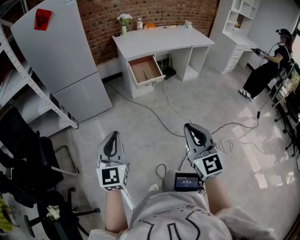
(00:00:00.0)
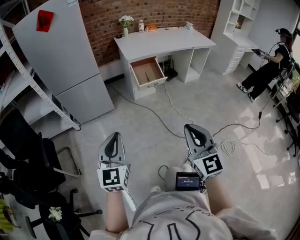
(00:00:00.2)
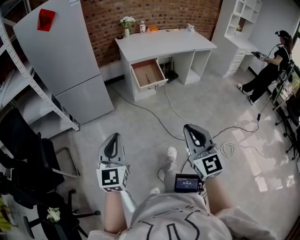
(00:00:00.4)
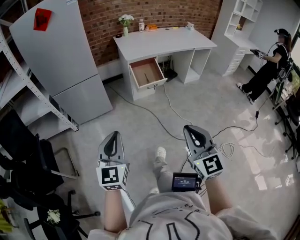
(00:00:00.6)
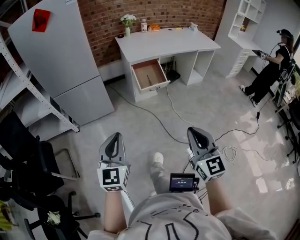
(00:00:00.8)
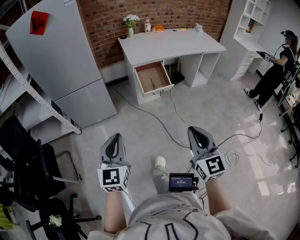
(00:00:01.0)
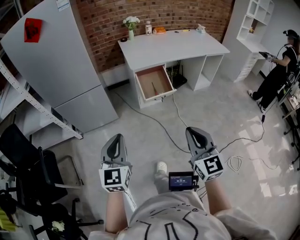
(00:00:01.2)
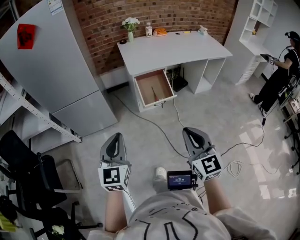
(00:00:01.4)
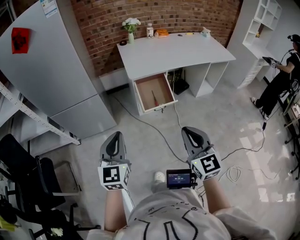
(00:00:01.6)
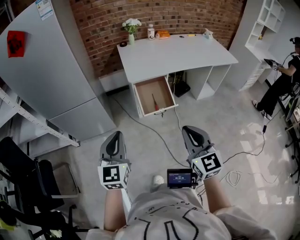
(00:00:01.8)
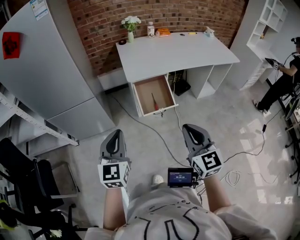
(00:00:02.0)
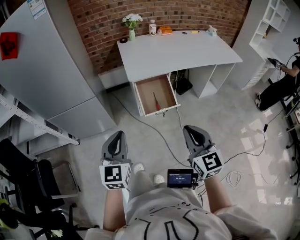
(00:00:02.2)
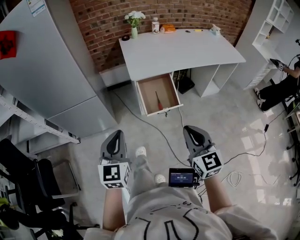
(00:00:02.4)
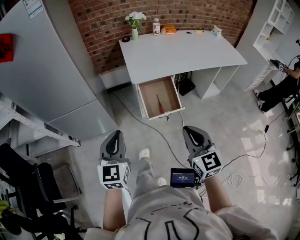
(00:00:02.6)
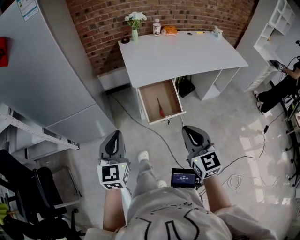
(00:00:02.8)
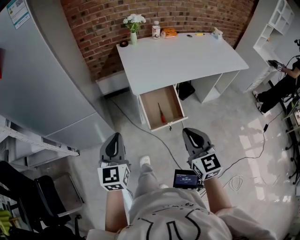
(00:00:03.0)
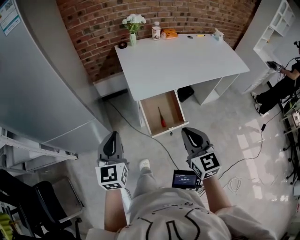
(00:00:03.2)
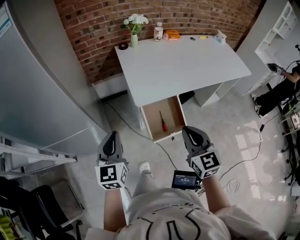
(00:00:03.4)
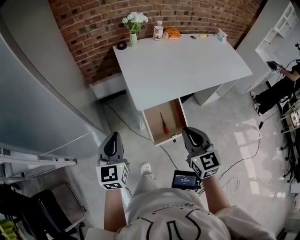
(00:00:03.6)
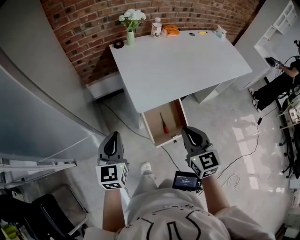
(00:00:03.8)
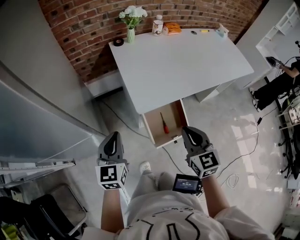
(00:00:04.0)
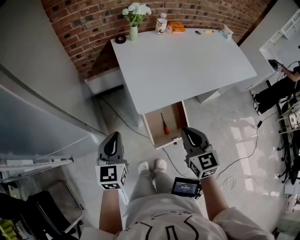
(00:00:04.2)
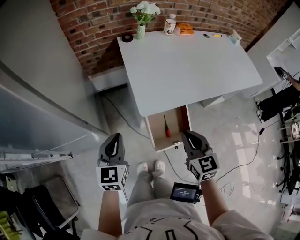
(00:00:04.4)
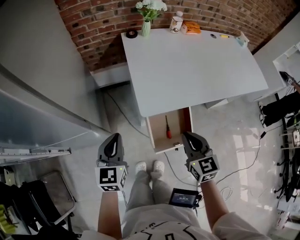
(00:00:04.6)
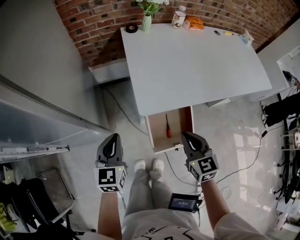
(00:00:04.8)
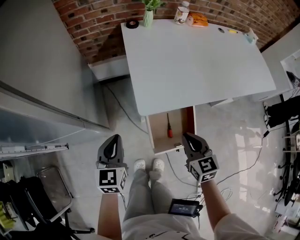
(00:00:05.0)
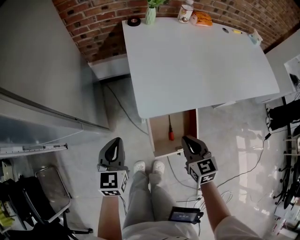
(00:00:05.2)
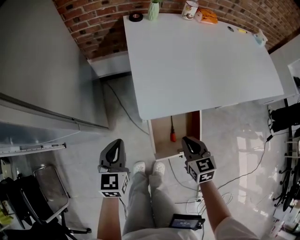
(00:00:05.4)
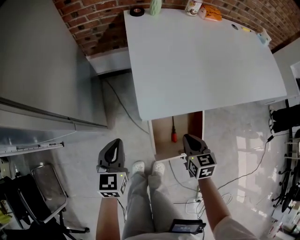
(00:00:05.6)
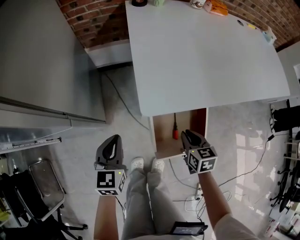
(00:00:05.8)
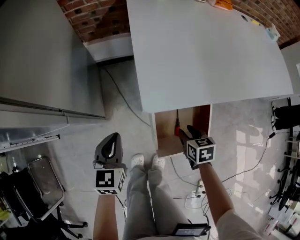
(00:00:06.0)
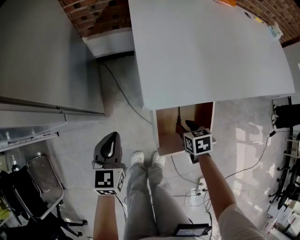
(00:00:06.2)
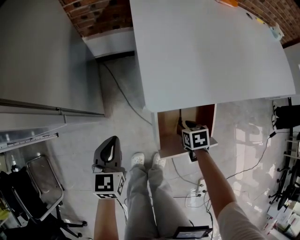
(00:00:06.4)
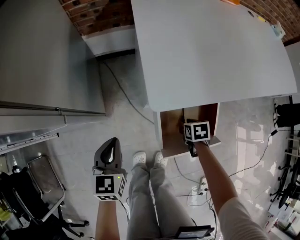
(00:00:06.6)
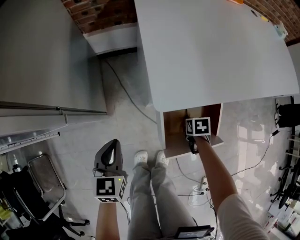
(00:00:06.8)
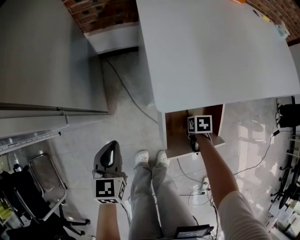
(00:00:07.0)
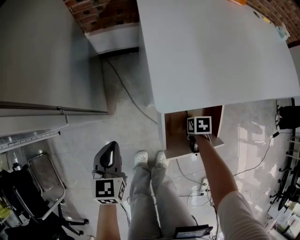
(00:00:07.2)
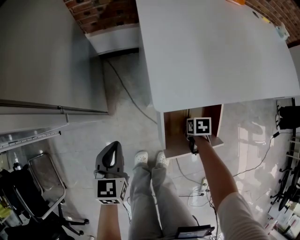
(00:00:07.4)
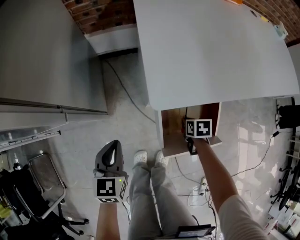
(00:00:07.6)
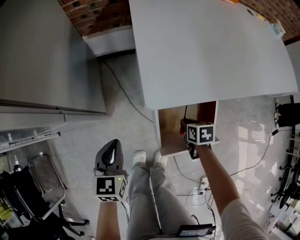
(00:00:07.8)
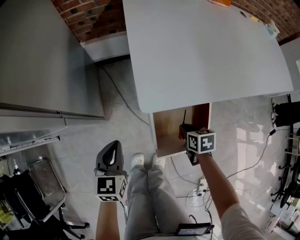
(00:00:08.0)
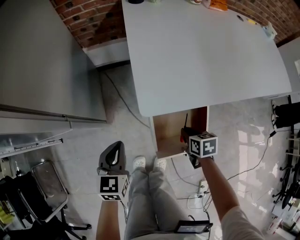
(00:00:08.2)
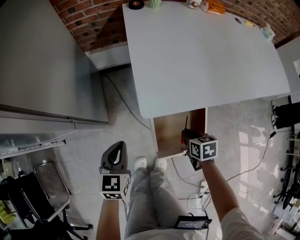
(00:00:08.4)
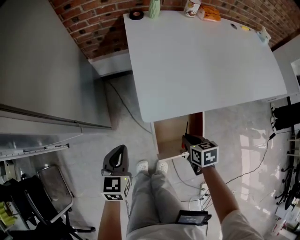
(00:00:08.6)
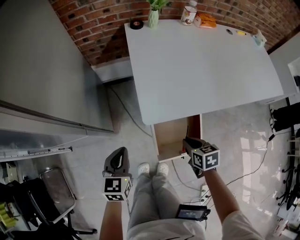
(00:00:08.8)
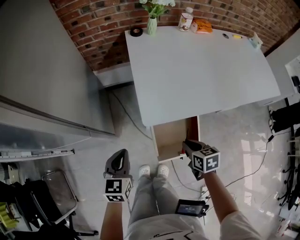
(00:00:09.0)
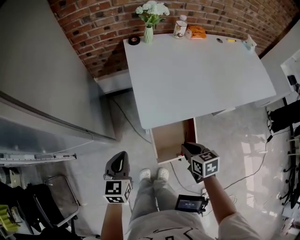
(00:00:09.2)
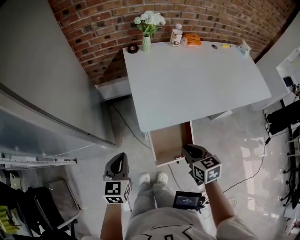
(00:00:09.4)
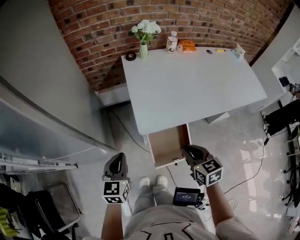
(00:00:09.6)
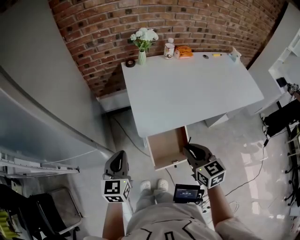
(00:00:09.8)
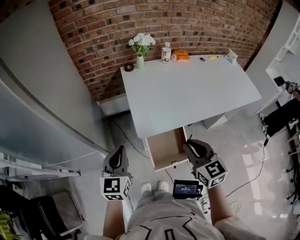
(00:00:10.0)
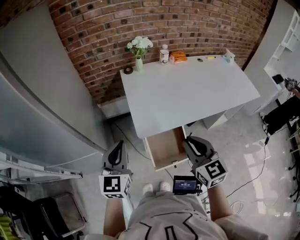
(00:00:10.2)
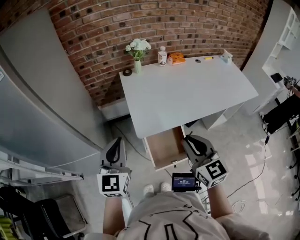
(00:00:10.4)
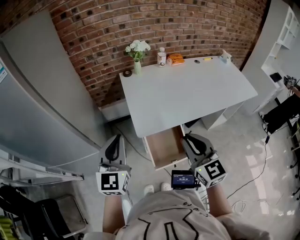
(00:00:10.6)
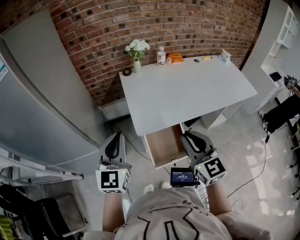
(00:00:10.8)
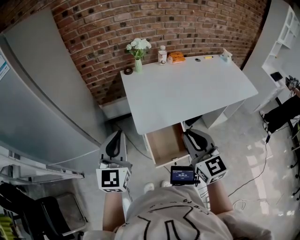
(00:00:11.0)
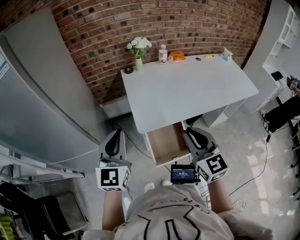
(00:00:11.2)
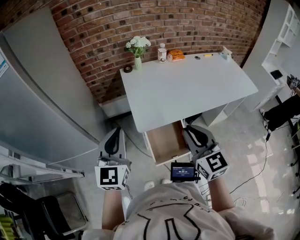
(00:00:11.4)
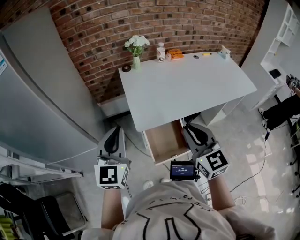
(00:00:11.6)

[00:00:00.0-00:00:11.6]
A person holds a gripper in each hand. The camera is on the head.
00:00:00.0 to 00:00:01.4: The two grippers go some 25 cm forward.
00:00:01.4 to 00:00:02.8: The grippers both shift forward by about 25 cm.
00:00:02.8 to 00:00:04.4: Both grippers travel together forward, some 25 cm.
00:00:04.4 to 00:00:05.8: Both grippers travel together downward, approximately 25 cm. The right gripper rotates roughly 30 degrees.
00:00:05.8 to 00:00:07.2: The right gripper is displaced downward by approximately 20 cm, and angles its fingers downward, by about 30 degrees. Meanwhile the left gripper moves downward, approximately 5 cm.
00:00:07.2 to 00:00:08.8: The left gripper shifts some 15 cm upward, while the right gripper travels upward by approximately 25 cm, and rotates some 20 degrees.
00:00:08.8 to 00:00:10.2: Both grippers travel together upward, approximately 30 cm. The left gripper changes its angle by roughly 30 degrees; the right gripper tilts its fingers about 40 degrees upward.
00:00:10.2 to 00:00:11.6: The left gripper goes about 5 cm upward.

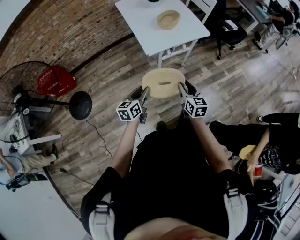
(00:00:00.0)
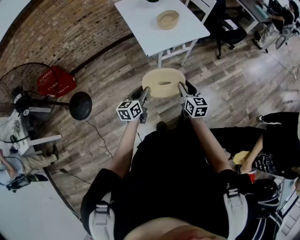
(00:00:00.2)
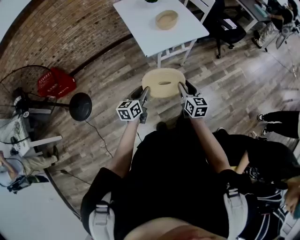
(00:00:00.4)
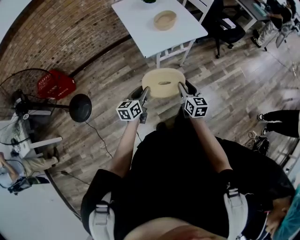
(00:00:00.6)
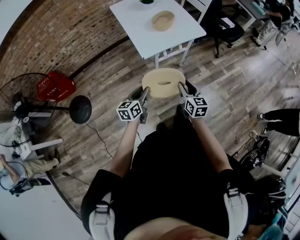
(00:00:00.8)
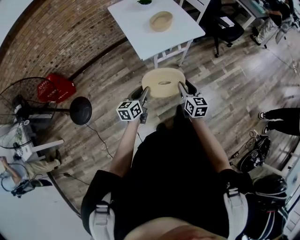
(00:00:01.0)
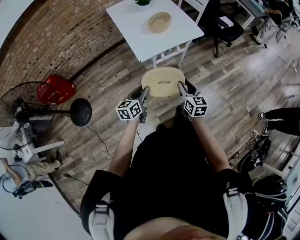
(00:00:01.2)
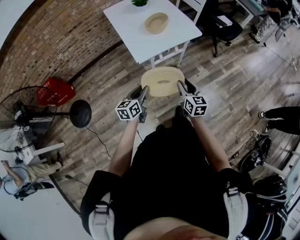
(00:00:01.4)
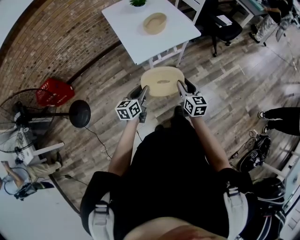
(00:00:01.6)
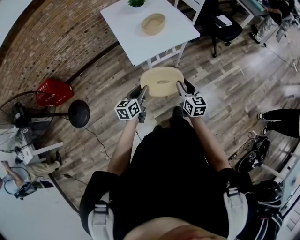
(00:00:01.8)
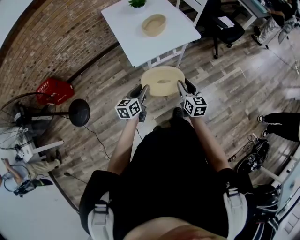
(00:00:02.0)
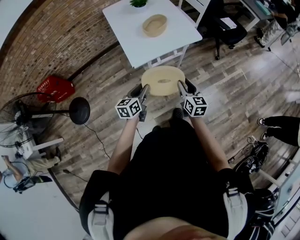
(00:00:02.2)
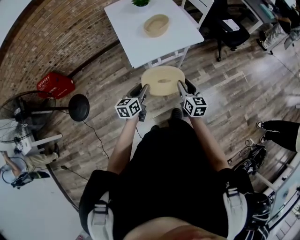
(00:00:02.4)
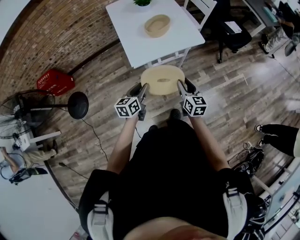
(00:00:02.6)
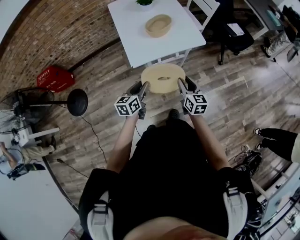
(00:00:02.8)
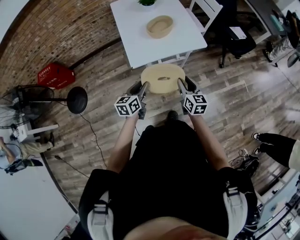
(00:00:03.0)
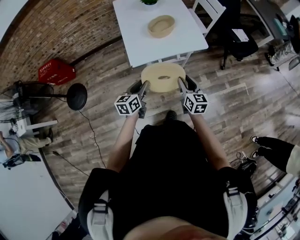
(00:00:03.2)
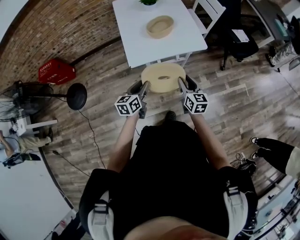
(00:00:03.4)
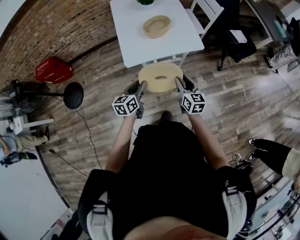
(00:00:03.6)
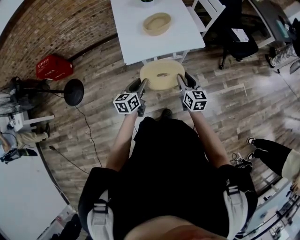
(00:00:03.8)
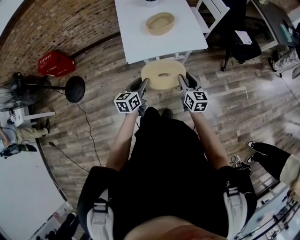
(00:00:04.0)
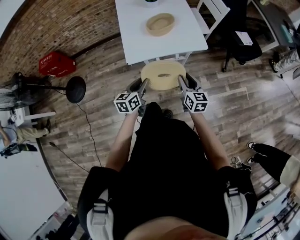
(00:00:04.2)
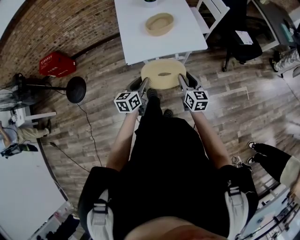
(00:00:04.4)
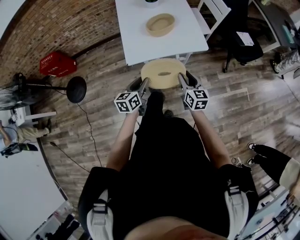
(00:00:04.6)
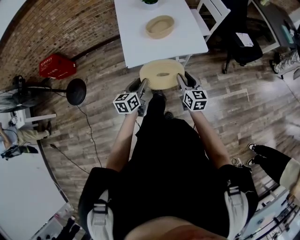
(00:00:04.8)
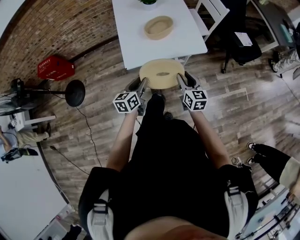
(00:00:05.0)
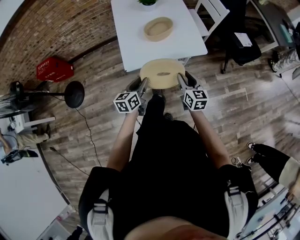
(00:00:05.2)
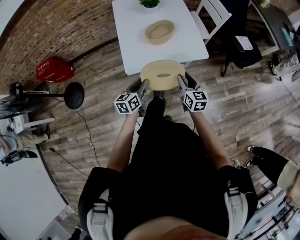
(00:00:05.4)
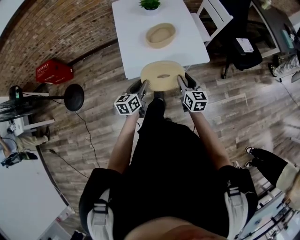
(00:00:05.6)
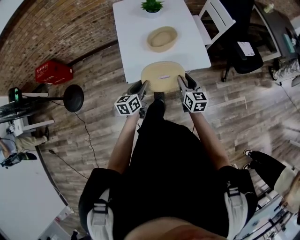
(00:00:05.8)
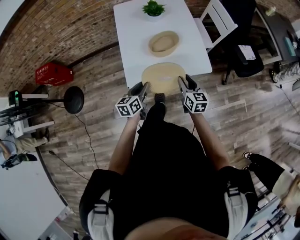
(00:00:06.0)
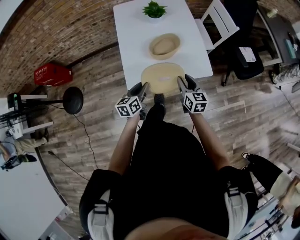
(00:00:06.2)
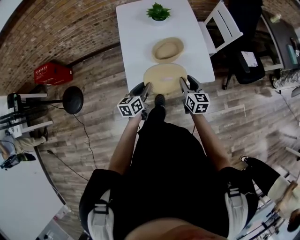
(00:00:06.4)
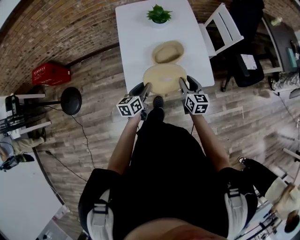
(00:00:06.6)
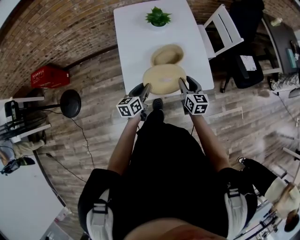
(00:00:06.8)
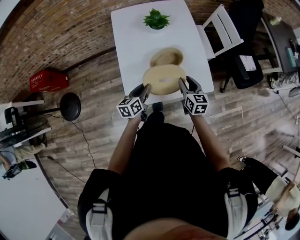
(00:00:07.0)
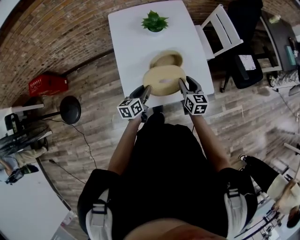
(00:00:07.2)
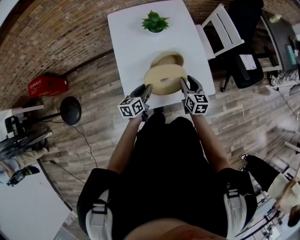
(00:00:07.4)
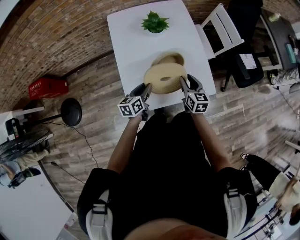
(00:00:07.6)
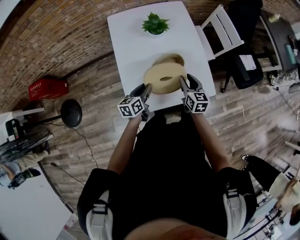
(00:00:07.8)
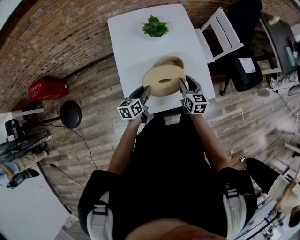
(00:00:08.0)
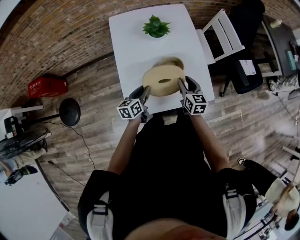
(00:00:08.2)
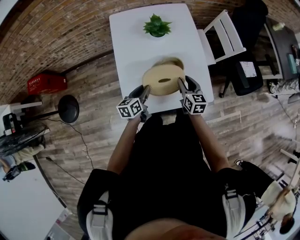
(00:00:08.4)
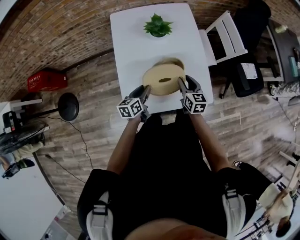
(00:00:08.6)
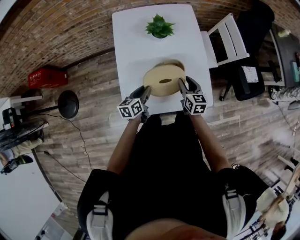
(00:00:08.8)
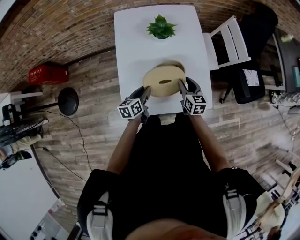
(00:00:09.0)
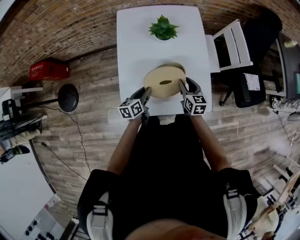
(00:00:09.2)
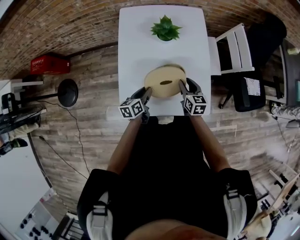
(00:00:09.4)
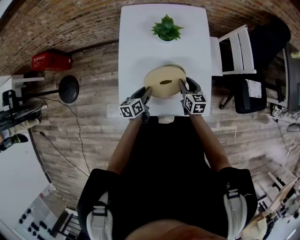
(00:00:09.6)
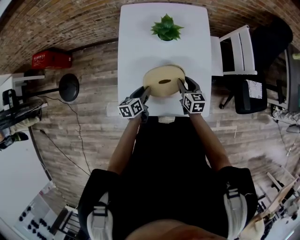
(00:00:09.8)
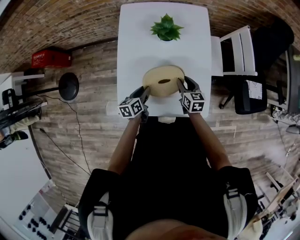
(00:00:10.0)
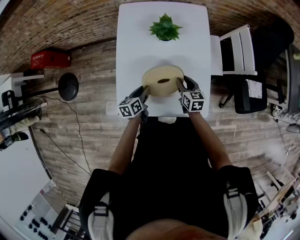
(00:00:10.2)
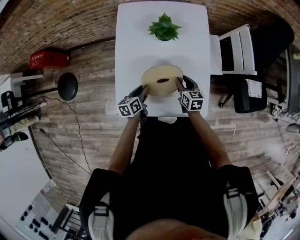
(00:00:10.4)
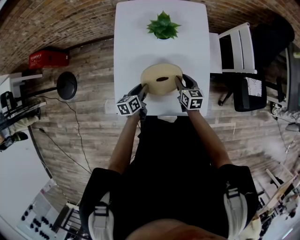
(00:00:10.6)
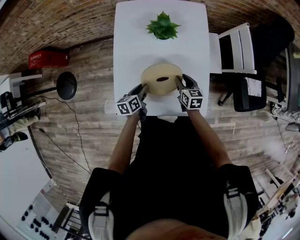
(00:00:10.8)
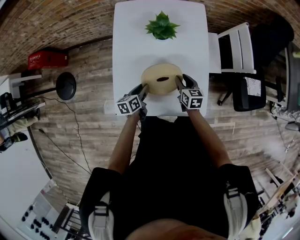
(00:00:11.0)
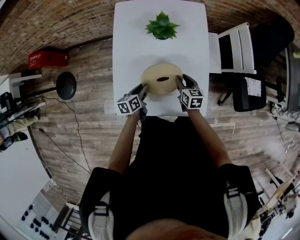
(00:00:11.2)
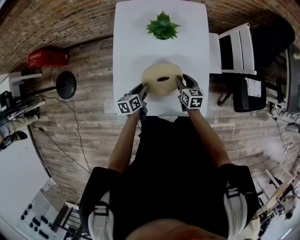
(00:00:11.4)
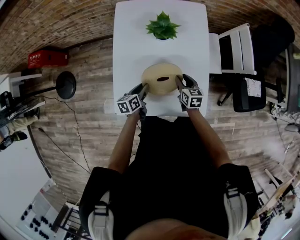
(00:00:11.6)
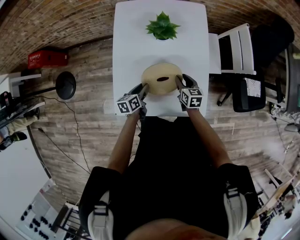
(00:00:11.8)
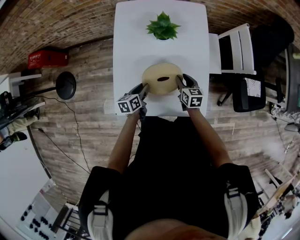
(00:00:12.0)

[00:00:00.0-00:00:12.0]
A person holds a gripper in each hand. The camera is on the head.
00:00:00.0 to 00:00:01.6: The grippers both shift forward and to the right by roughly 10 cm.
00:00:01.6 to 00:00:03.0: The two grippers go some 10 cm forward and to the right.
00:00:03.0 to 00:00:04.4: Both grippers travel together to the right, roughly 5 cm.
00:00:04.4 to 00:00:06.0: The two grippers go approximately 15 cm forward.
00:00:06.0 to 00:00:07.6: Both grippers travel together forward, about 20 cm.
00:00:07.6 to 00:00:09.0: The right gripper travels forward by some 5 cm.
00:00:09.0 to 00:00:10.4: The right gripper shifts approximately 5 cm forward.
00:00:10.4 to 00:00:12.0: The grippers move only a little.
